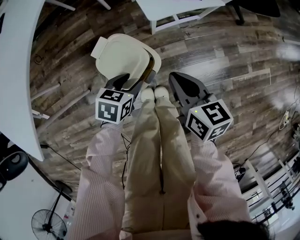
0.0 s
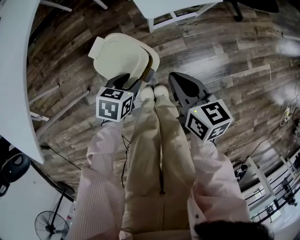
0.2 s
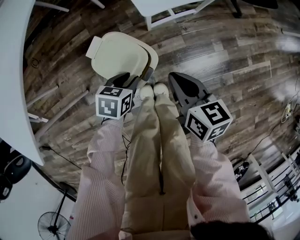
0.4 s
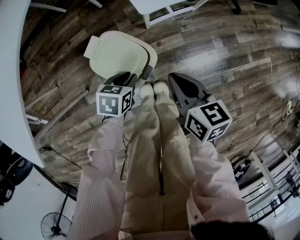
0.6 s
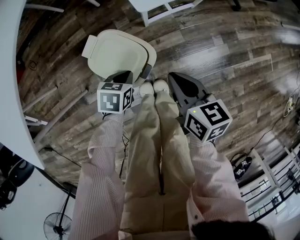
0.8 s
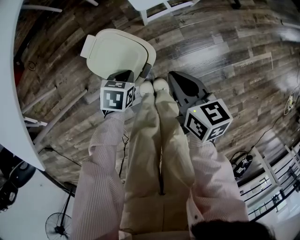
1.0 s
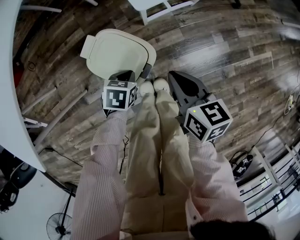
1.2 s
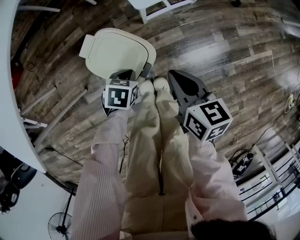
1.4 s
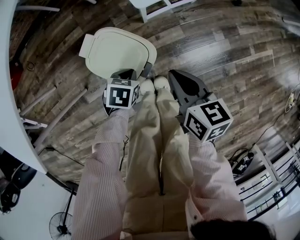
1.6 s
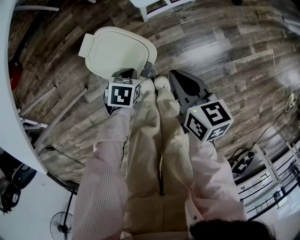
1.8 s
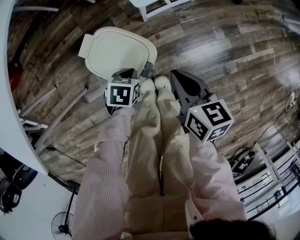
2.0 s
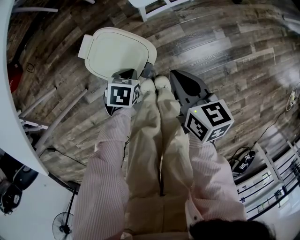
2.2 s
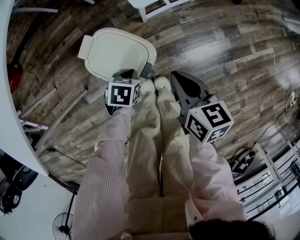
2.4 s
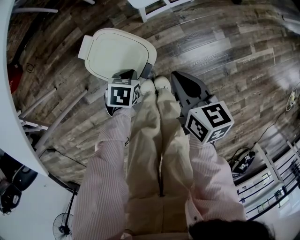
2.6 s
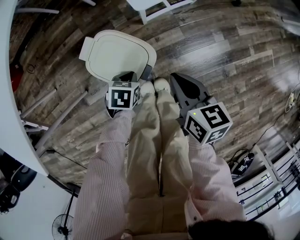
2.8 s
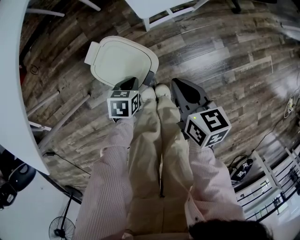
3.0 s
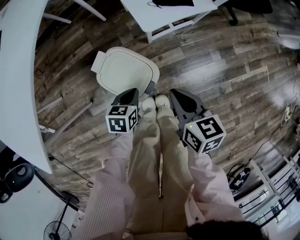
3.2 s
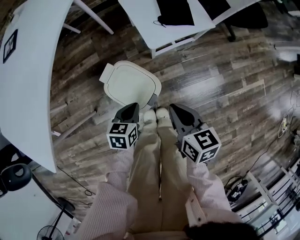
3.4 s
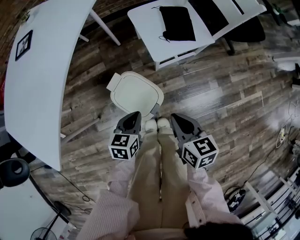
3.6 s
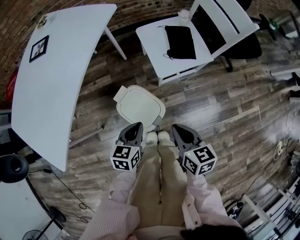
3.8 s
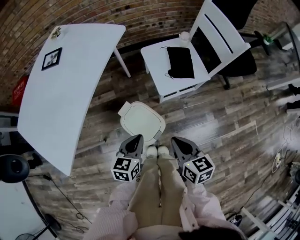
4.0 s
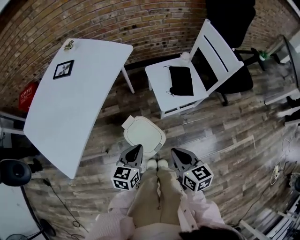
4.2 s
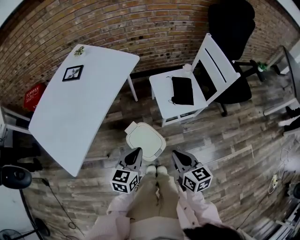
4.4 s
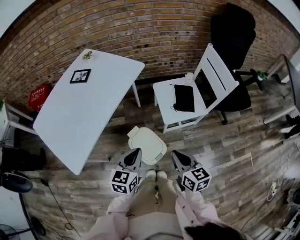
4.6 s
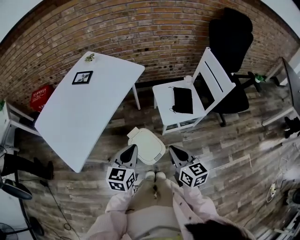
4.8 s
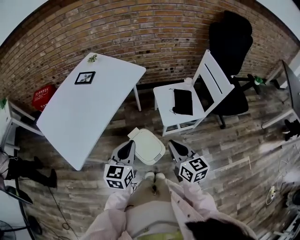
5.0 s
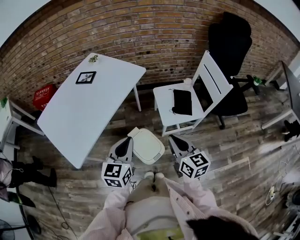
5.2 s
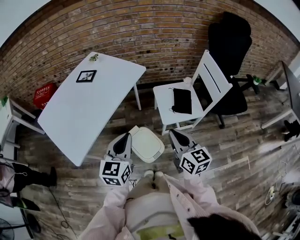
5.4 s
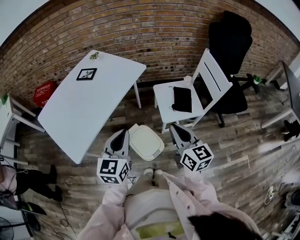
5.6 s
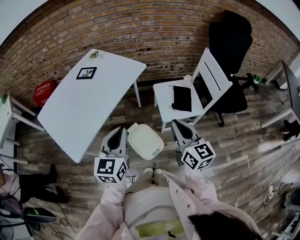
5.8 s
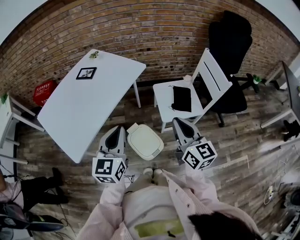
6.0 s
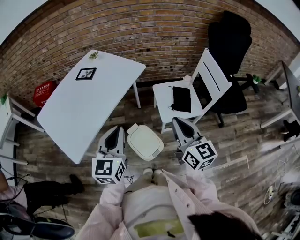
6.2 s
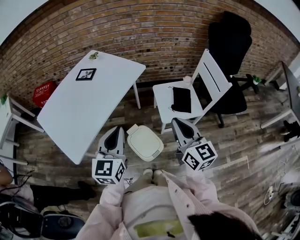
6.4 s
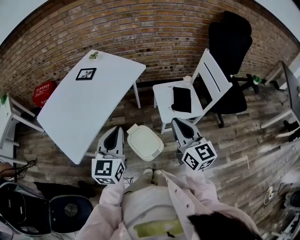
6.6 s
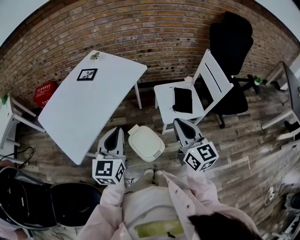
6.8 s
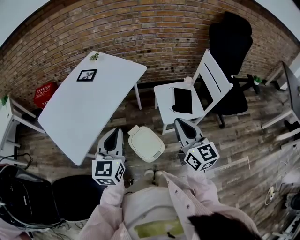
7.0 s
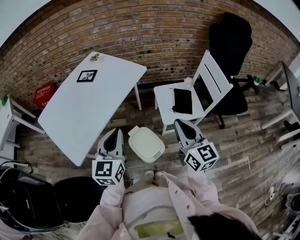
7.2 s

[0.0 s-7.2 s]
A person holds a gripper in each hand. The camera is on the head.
0.0 to 1.4 s: The left gripper shifts roughly 10 cm downward, and closes.
1.4 to 2.8 s: There are only small adjustments of the grippers.
2.8 to 4.4 s: The right gripper travels upward by approximately 25 cm, and rotates approximately 20 degrees, while the left gripper heads upward, covering about 40 cm, and angles its fingers upward, by some 40 degrees.
4.4 to 5.8 s: Both grippers move upward, roughly 15 cm. The right gripper turns by roughly 20 degrees; the left gripper swivels about 30 degrees.
5.8 to 7.2 s: The grippers make only small movements.

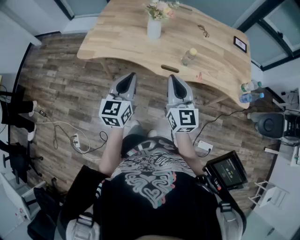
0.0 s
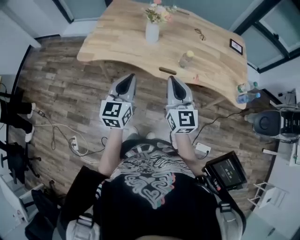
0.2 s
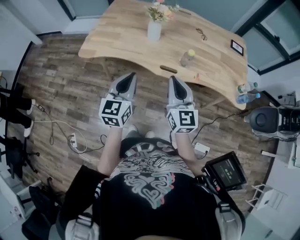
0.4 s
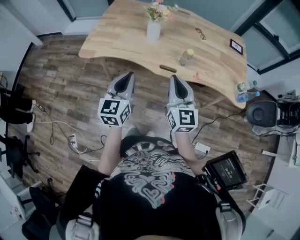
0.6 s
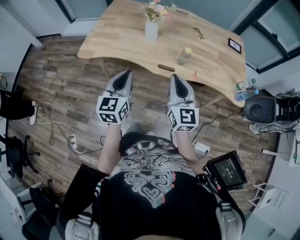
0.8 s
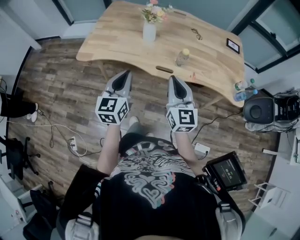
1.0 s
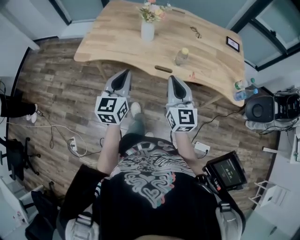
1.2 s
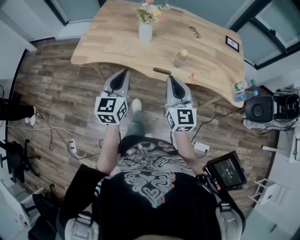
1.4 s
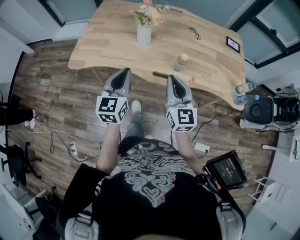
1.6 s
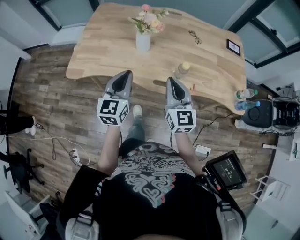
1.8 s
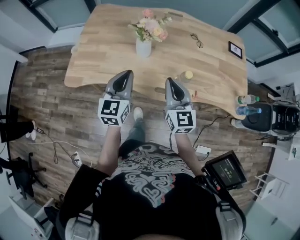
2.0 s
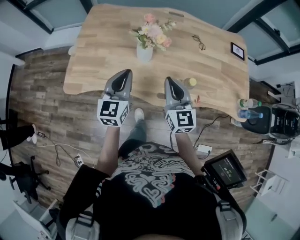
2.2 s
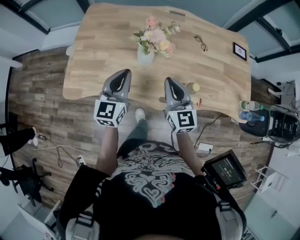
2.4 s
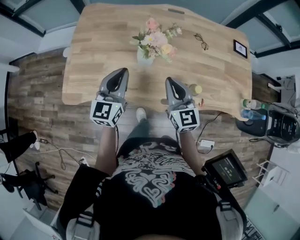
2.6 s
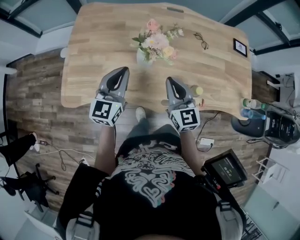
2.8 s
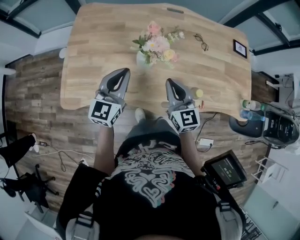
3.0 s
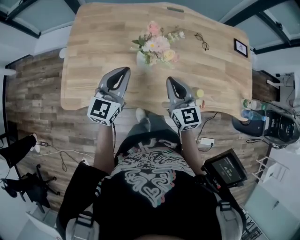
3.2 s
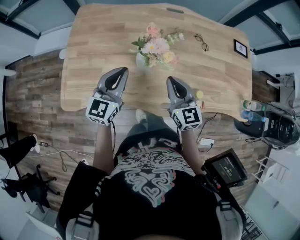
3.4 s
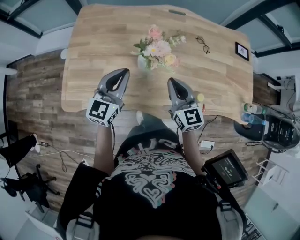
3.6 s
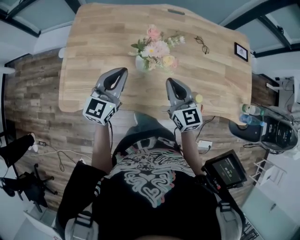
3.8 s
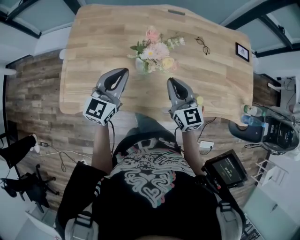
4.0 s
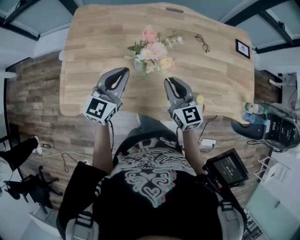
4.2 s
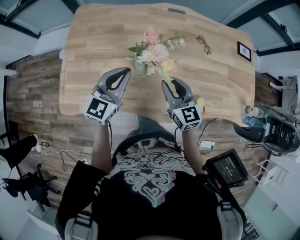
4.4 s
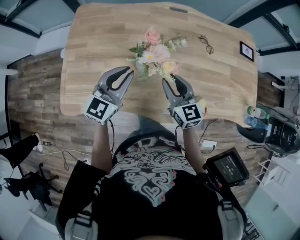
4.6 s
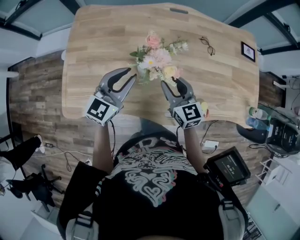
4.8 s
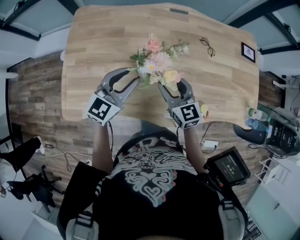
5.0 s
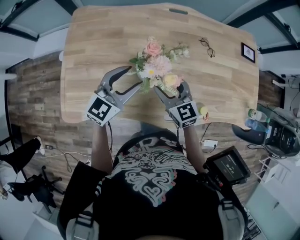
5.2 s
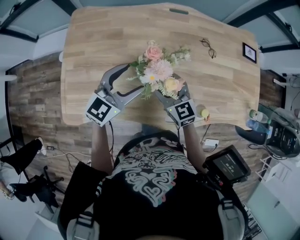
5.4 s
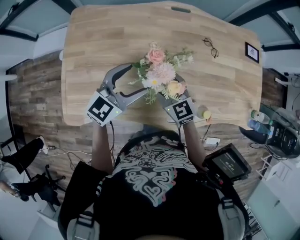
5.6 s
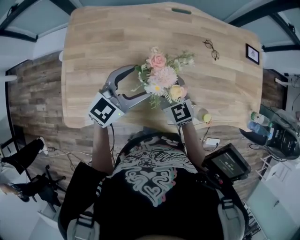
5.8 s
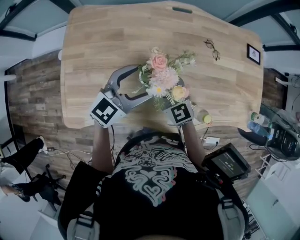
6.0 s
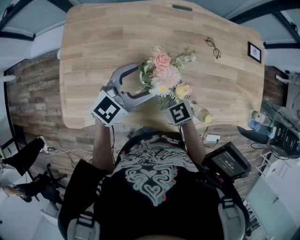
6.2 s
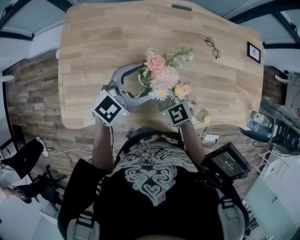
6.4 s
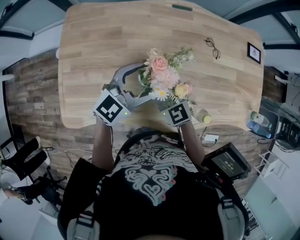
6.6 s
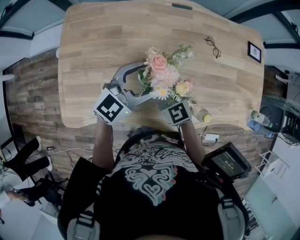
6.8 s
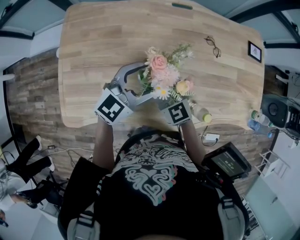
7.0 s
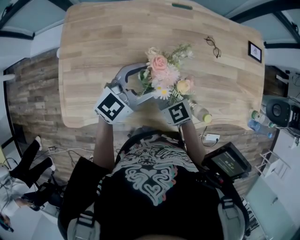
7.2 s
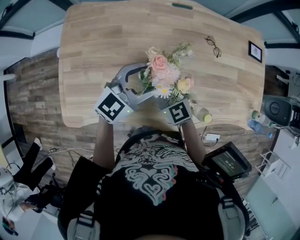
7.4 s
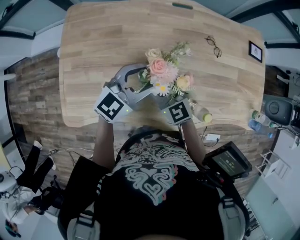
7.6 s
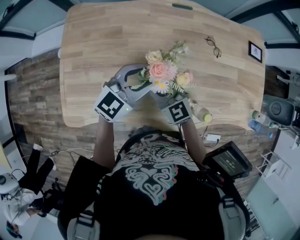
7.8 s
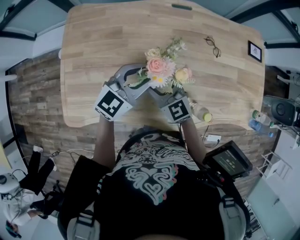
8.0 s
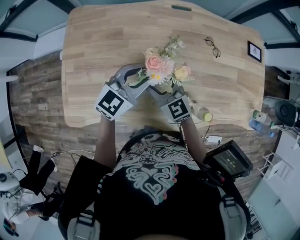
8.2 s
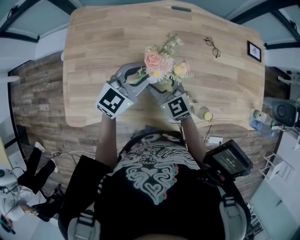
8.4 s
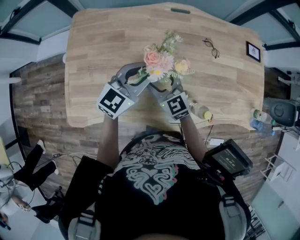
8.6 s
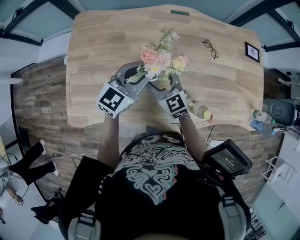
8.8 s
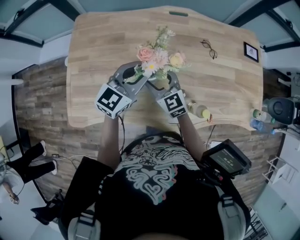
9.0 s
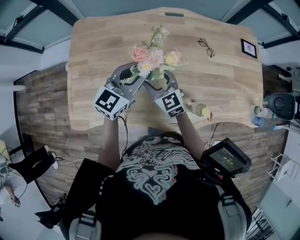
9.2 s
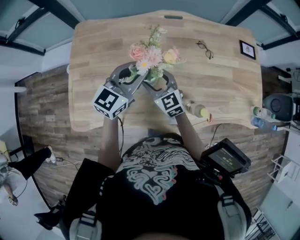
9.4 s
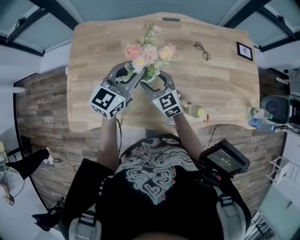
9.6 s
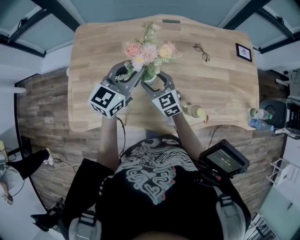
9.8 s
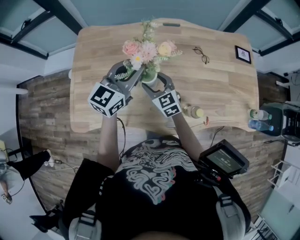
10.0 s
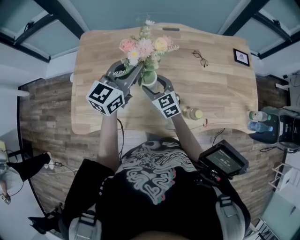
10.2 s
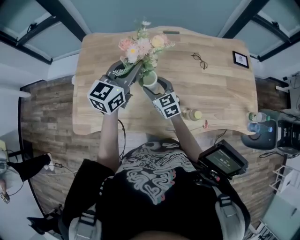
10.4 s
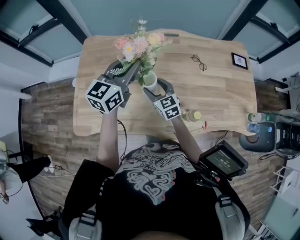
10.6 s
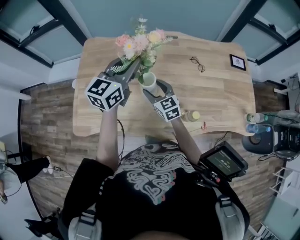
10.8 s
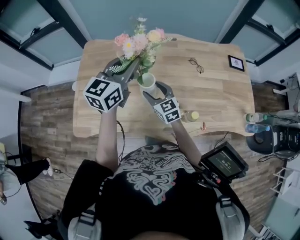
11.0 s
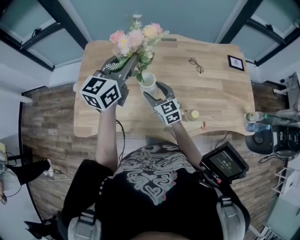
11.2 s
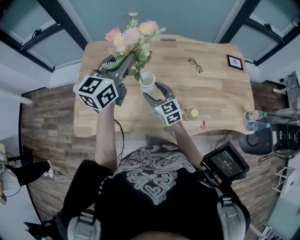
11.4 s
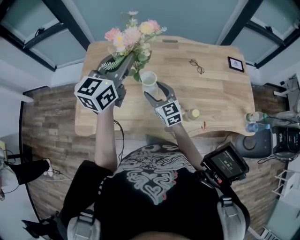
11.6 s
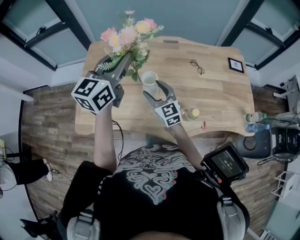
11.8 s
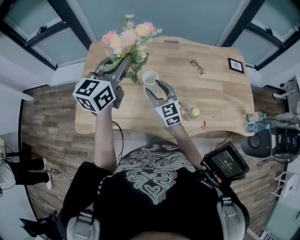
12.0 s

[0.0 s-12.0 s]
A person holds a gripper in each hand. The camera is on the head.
0.0 to 1.6 s: The left gripper travels forward by some 5 cm, while the right gripper changes place by some 5 cm.
1.6 to 3.0 s: The two grippers go some 30 cm forward.
3.0 to 4.4 s: The left gripper shifts by about 5 cm; the right gripper heads forward, covering some 5 cm, and opens up.
4.4 to 6.0 s: The right gripper shifts about 15 cm forward and to the left, and opens up, while the left gripper travels forward by roughly 10 cm, swivels approximately 20 degrees, and opens up.
6.0 to 7.6 s: The left gripper closes.
7.6 to 9.0 s: The left gripper closes its fingers.
9.0 to 10.4 s: The left gripper is displaced upward by about 10 cm.
10.4 to 12.0 s: The two grippers go some 10 cm upward and backward.

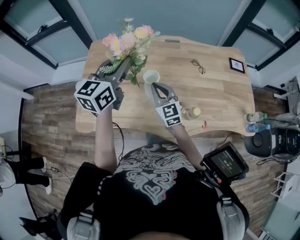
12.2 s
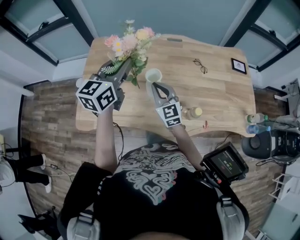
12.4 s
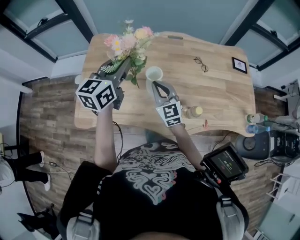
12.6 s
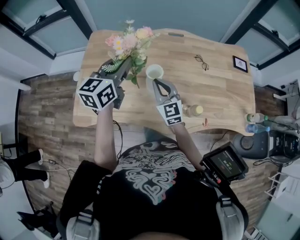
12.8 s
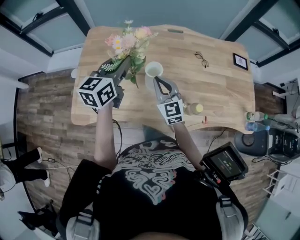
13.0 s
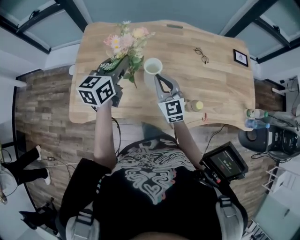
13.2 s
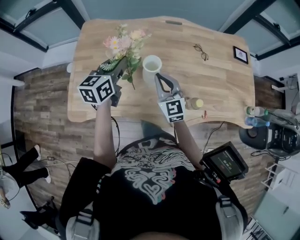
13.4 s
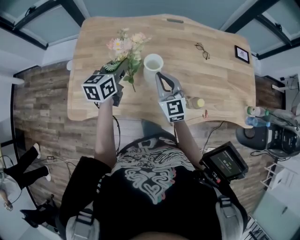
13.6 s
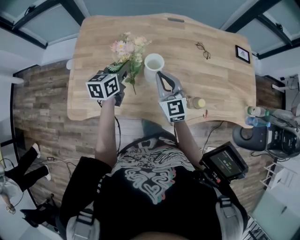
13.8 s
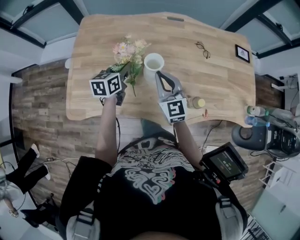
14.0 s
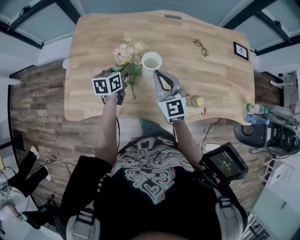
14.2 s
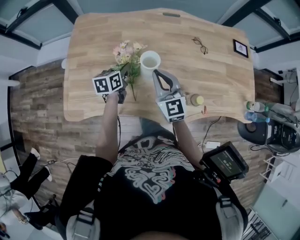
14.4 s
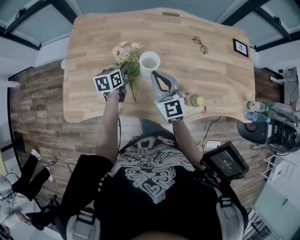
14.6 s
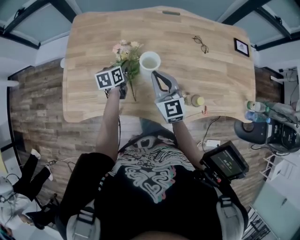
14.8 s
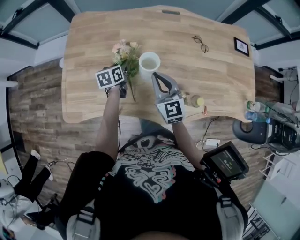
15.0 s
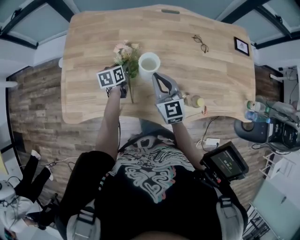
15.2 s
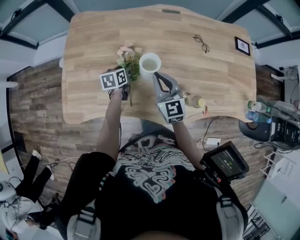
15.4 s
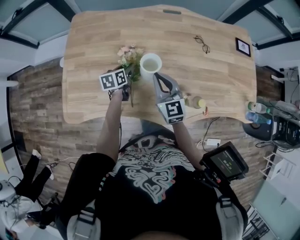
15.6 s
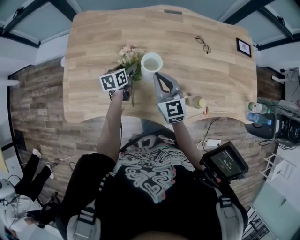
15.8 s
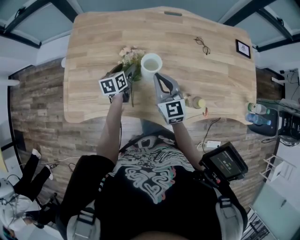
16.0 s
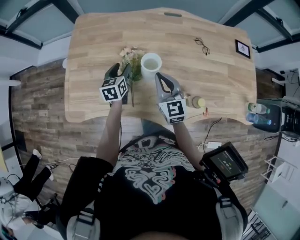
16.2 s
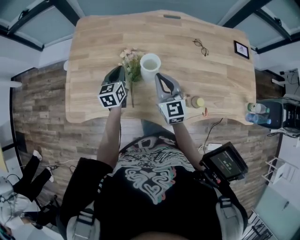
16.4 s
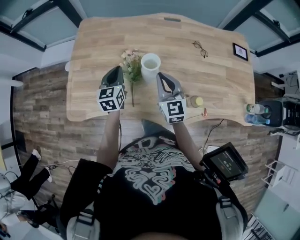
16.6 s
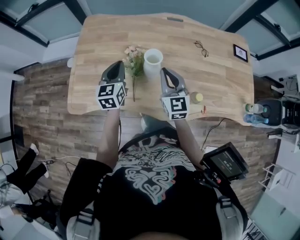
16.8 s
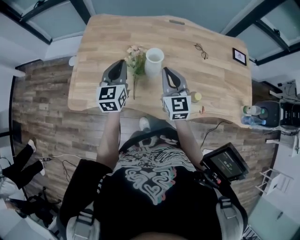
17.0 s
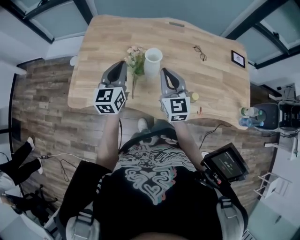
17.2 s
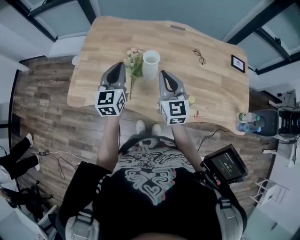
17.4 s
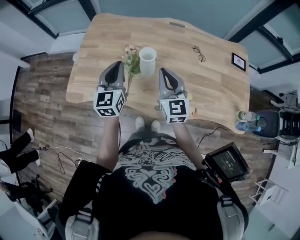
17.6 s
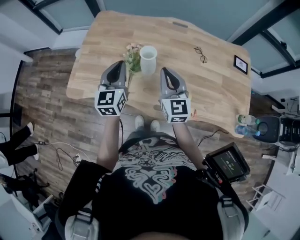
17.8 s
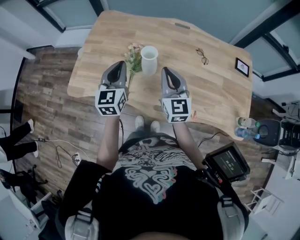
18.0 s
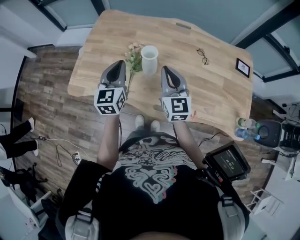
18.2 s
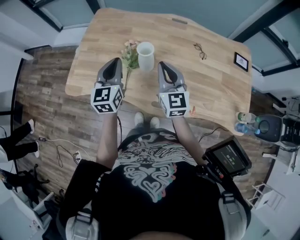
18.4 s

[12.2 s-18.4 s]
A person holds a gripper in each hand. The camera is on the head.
12.2 to 13.8 s: The left gripper moves downward, approximately 20 cm, and changes its angle by some 30 degrees.
13.8 to 15.4 s: The left gripper moves downward, some 15 cm.
15.4 to 16.8 s: The right gripper moves upward, roughly 5 cm. Meanwhile the left gripper goes some 20 cm upward and backward, changes its angle by roughly 30 degrees, and opens and closes again.
16.8 to 18.4 s: The right gripper shifts some 5 cm upward, while the left gripper moves backward and upward, approximately 15 cm.
